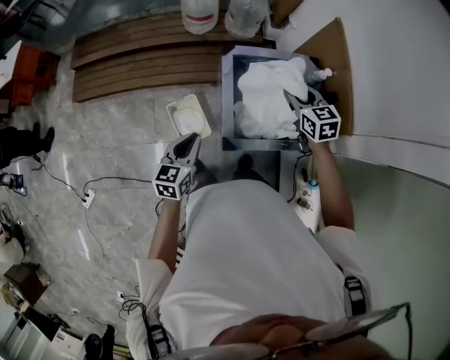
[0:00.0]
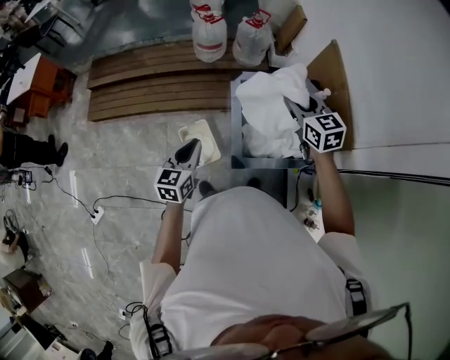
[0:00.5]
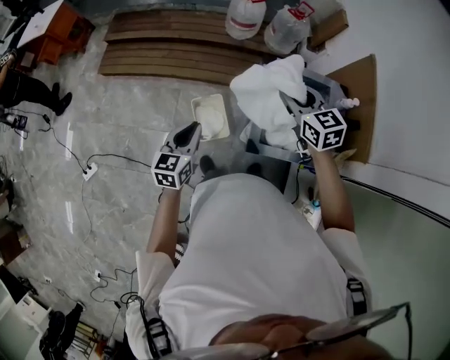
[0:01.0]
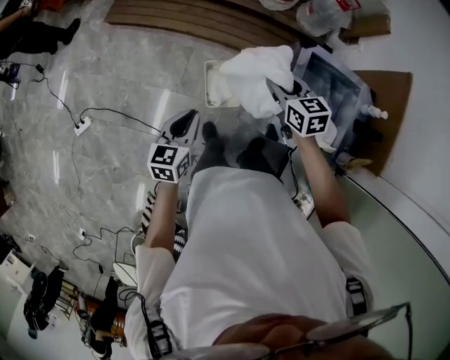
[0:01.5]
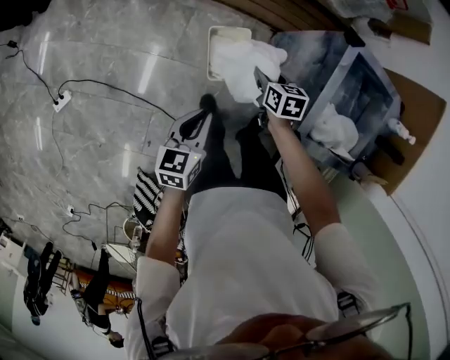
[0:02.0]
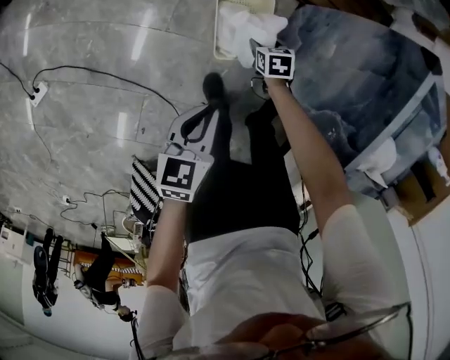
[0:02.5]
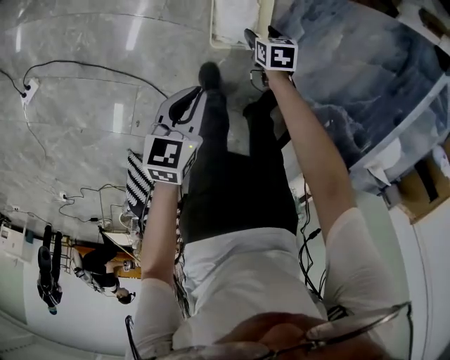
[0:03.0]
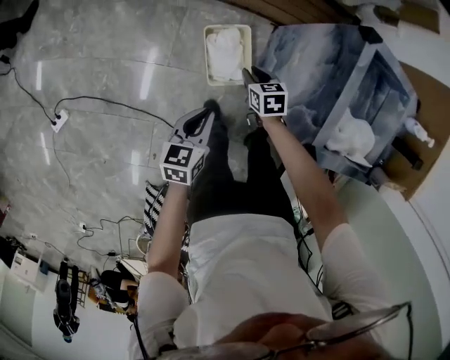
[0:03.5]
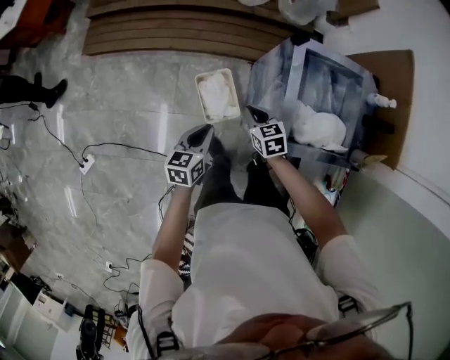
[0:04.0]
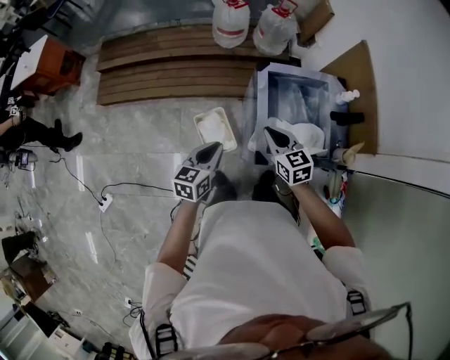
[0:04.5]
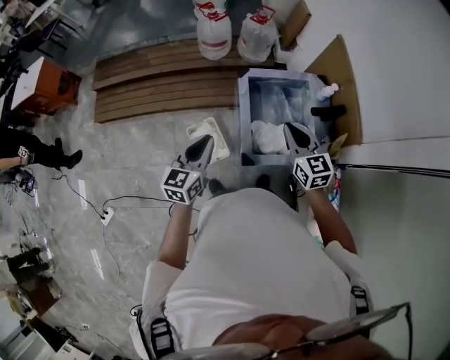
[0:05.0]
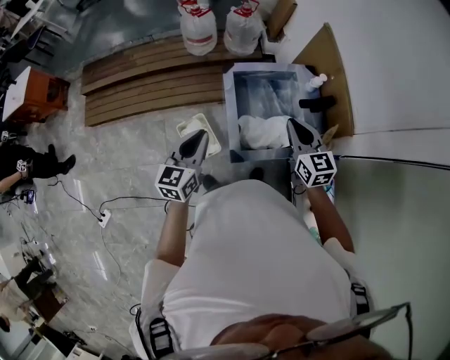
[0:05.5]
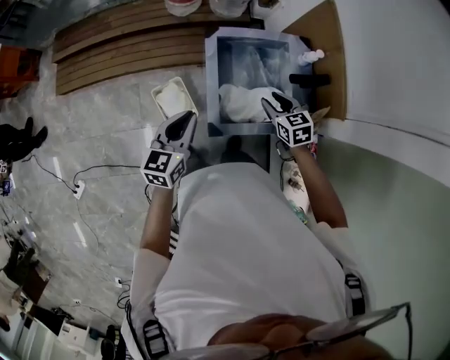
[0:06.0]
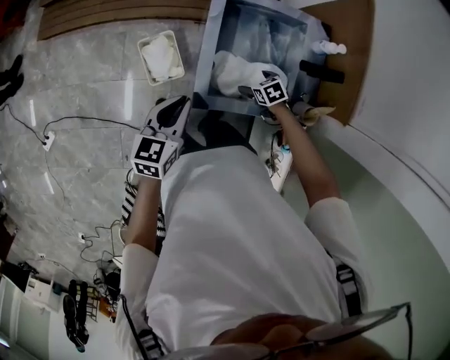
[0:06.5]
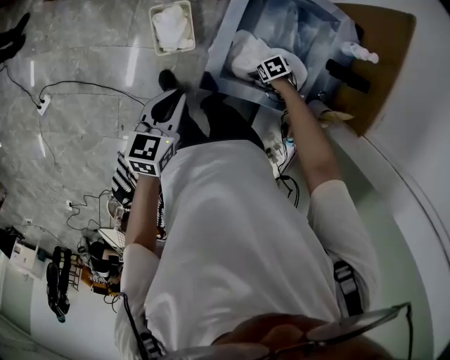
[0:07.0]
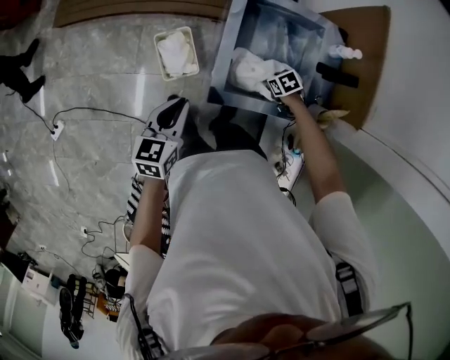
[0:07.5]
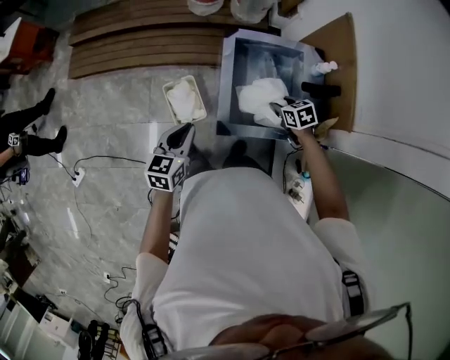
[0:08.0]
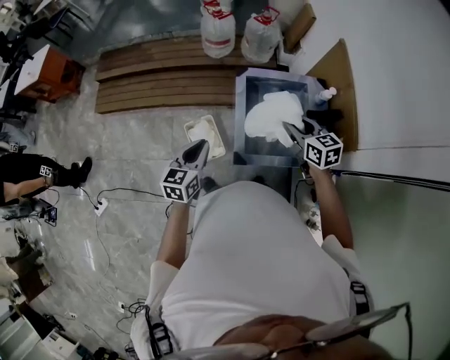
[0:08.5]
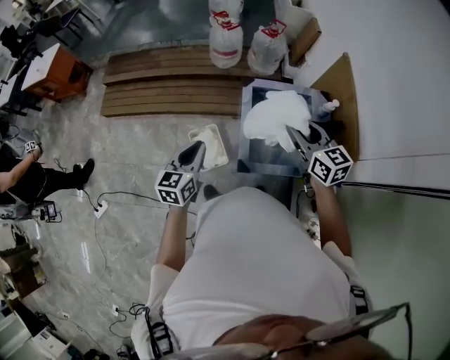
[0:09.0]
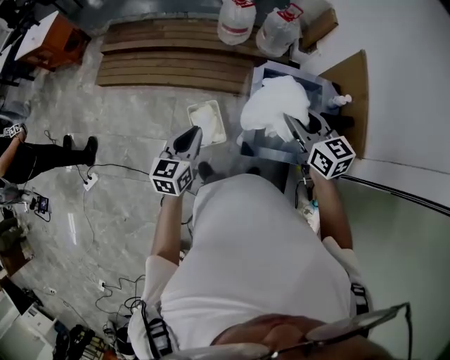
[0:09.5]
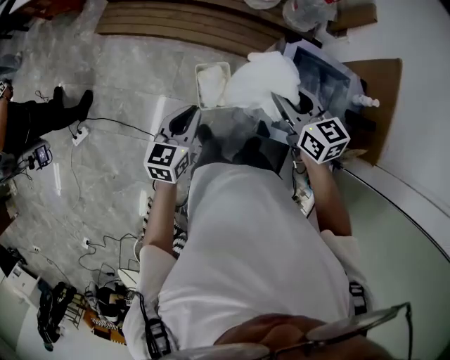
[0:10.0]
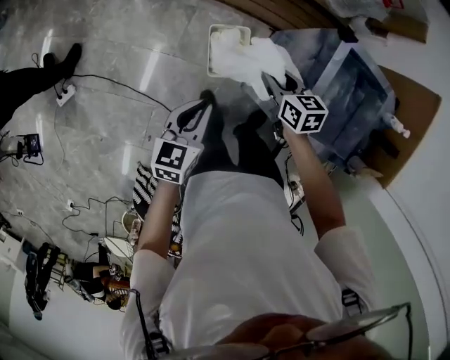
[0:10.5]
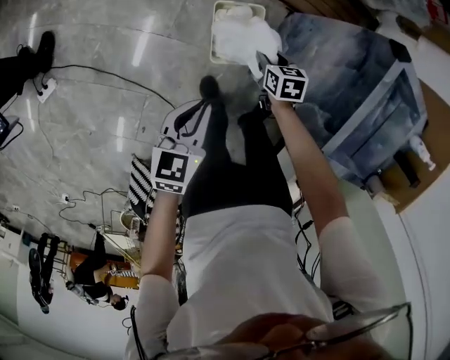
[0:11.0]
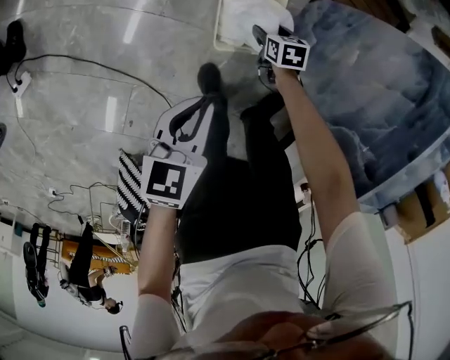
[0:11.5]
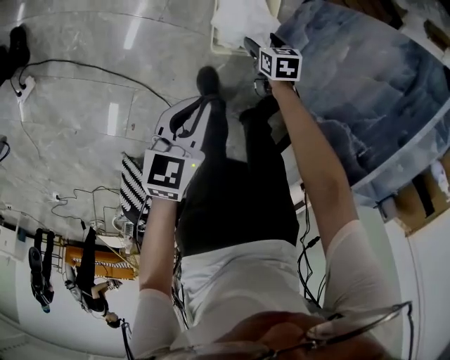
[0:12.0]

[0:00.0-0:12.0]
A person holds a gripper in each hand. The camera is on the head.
0:00.0 to 0:02.0: The right gripper travels to the left and downward by some 50 cm, and rotates approximately 30 degrees, while the left gripper goes roughly 35 cm to the left and downward, and swivels approximately 30 degrees.
0:02.0 to 0:04.0: The right gripper is displaced to the right and backward by about 5 cm, and moves approximately 35 cm downward and comes back, while the left gripper is displaced to the right by roughly 5 cm, and goes downward and returns, approximately 25 cm each way.
0:04.0 to 0:06.0: Both grippers travel together to the right and upward, some 35 cm. The left gripper swivels some 20 degrees.
0:06.0 to 0:08.0: The right gripper travels downward and back again, approximately 35 cm each way, and opens and closes again.
0:08.0 to 0:10.0: The left gripper travels to the left by approximately 15 cm; the right gripper travels to the left and upward by roughly 35 cm, and tilts its fingers approximately 30 degrees upward.
0:10.0 to 0:12.0: The right gripper is displaced downward by roughly 80 cm, tips its fingers downward by about 40 degrees, and opens. Meanwhile the left gripper goes some 50 cm downward, and changes its angle by about 20 degrees.

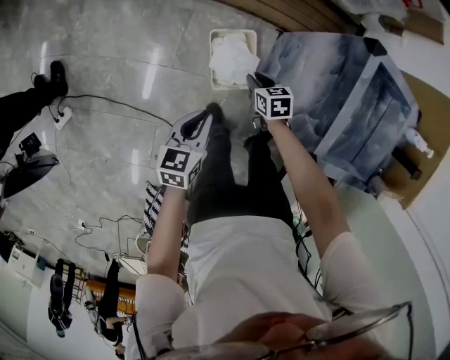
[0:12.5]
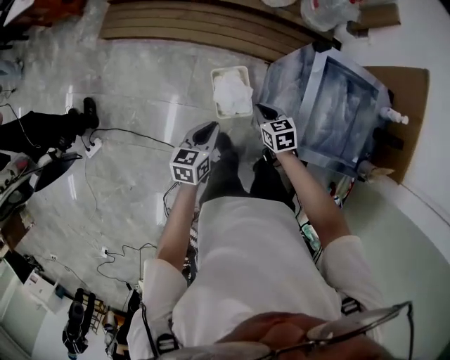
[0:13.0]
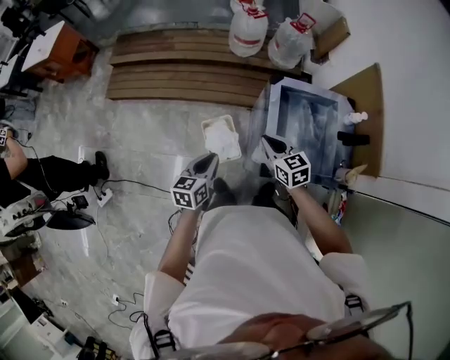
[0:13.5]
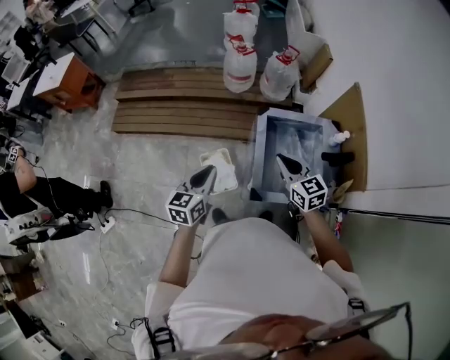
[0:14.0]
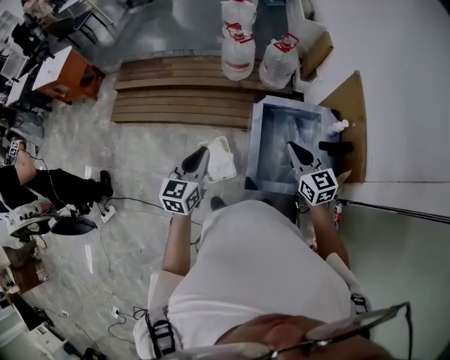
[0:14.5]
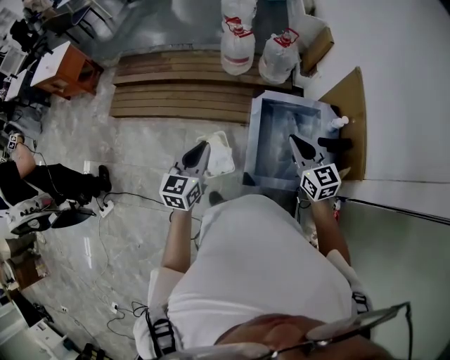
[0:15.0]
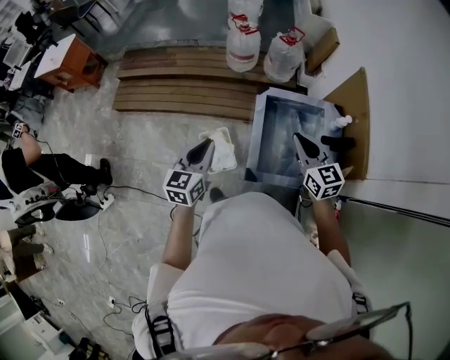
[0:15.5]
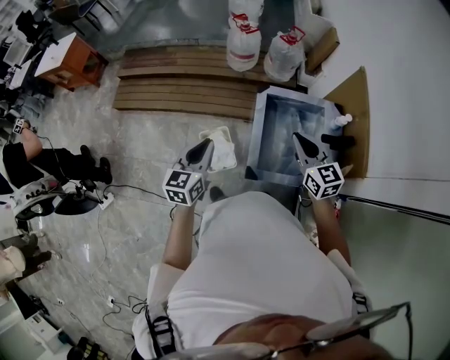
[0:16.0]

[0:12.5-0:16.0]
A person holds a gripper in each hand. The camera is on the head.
0:12.5 to 0:14.5: The grippers both shift upward and to the right by approximately 60 cm. The left gripper rotates approximately 30 degrees. Meanwhile the right gripper points its fingers approximately 40 degrees further upward.
0:14.5 to 0:16.0: There are only small adjustments of the grippers.

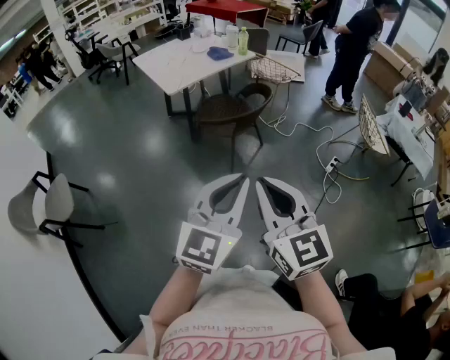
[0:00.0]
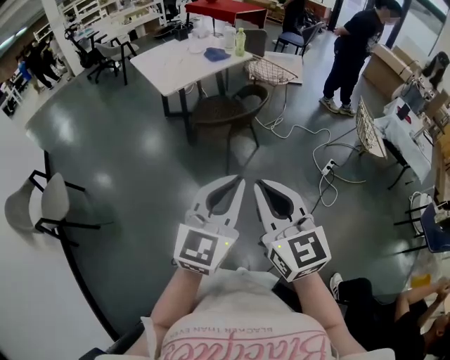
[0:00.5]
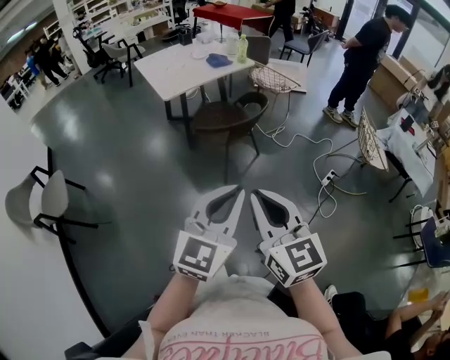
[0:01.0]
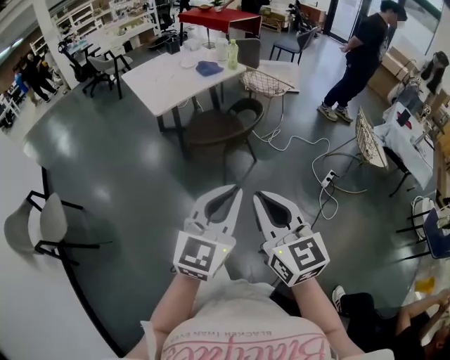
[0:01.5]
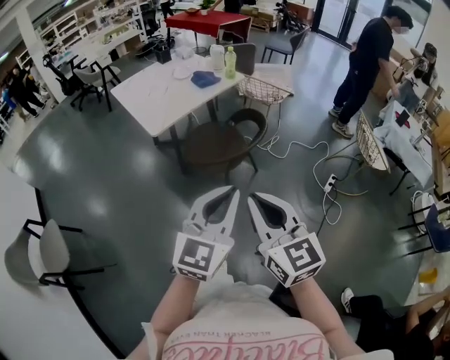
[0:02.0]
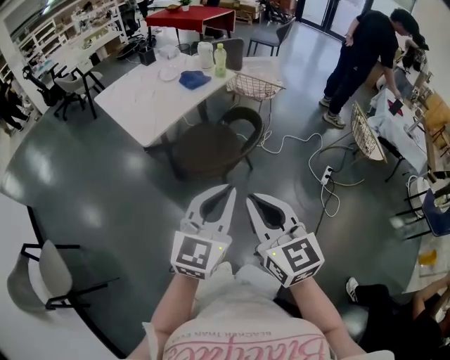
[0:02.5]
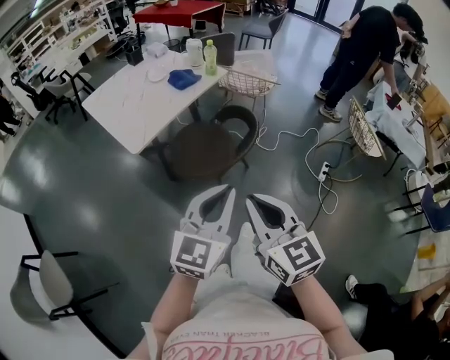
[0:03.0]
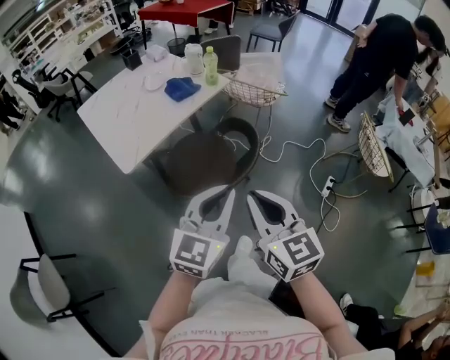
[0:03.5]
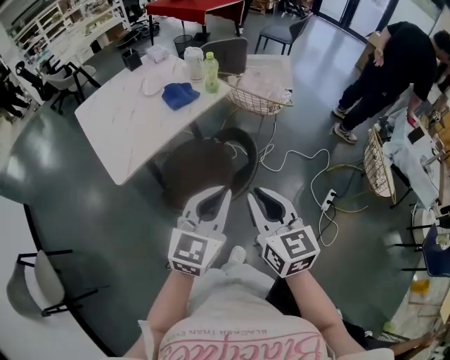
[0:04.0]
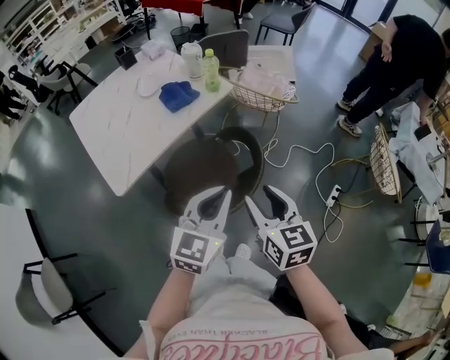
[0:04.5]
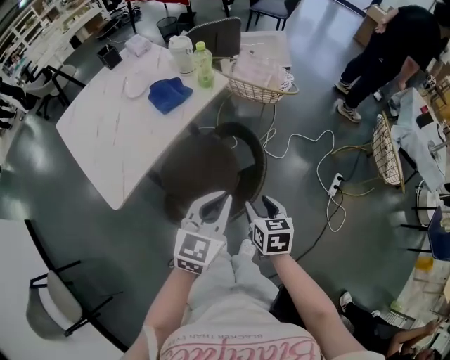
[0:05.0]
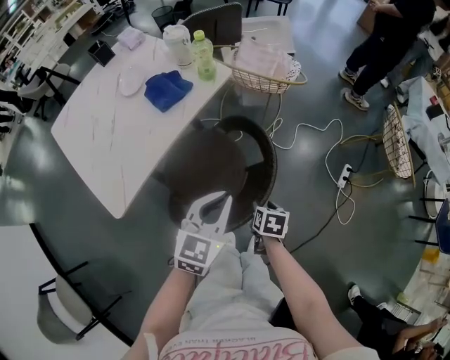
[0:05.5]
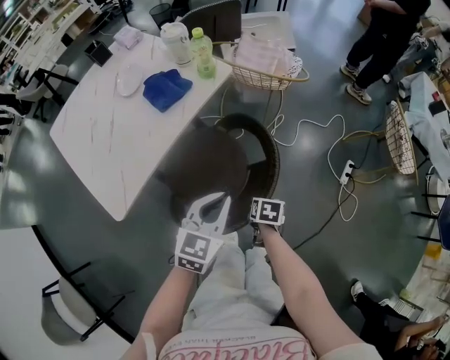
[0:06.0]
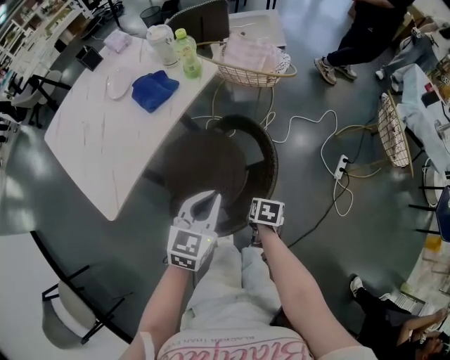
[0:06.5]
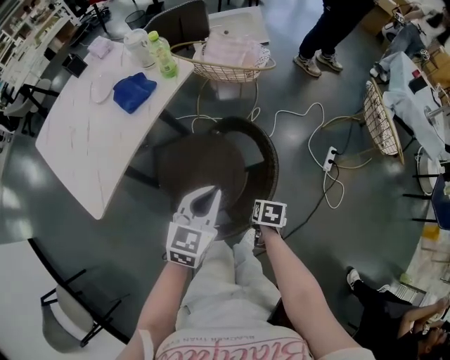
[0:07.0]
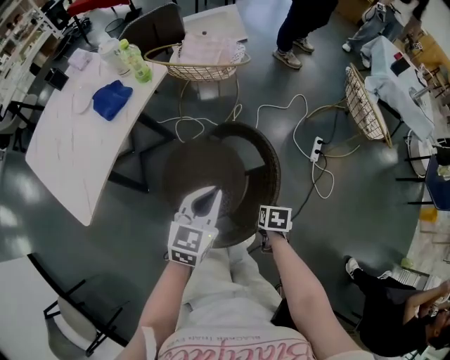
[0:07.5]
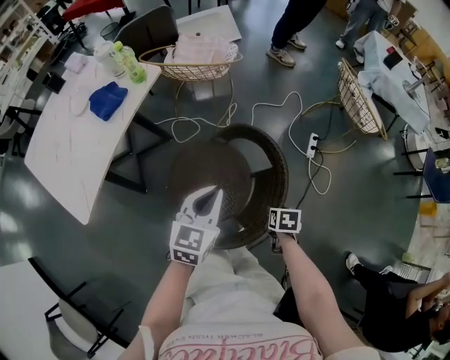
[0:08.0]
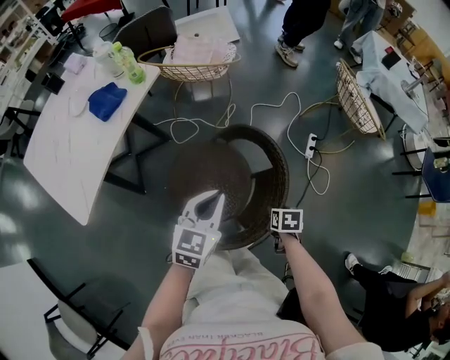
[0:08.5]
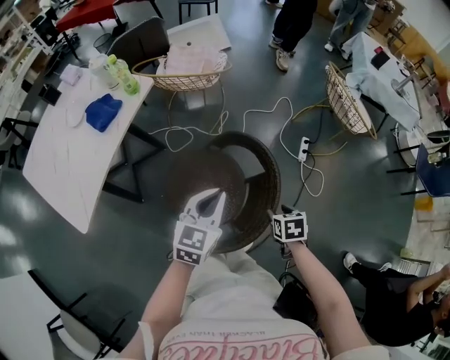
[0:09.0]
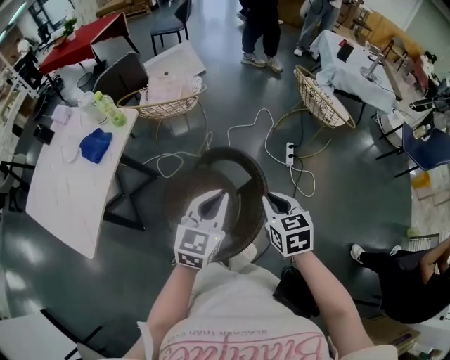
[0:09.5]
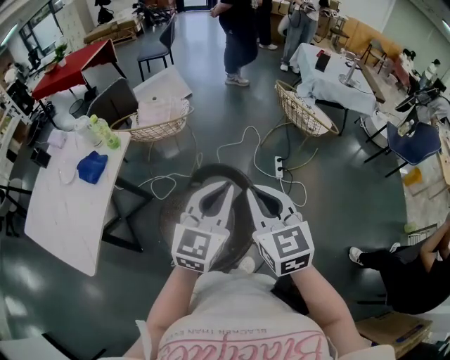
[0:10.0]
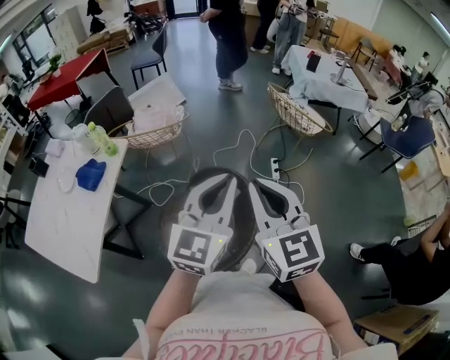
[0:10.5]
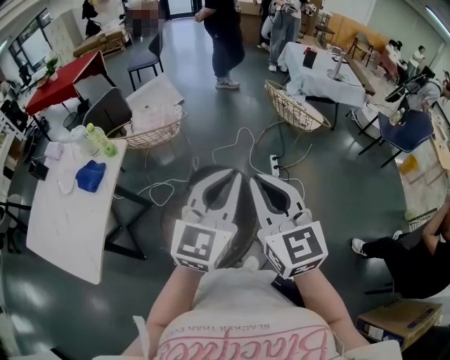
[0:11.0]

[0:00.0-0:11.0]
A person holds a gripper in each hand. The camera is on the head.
0:00.0 to 0:02.0: Both grippers move forward, roughly 20 cm.
0:02.0 to 0:03.5: Both grippers travel together forward, roughly 25 cm.
0:03.5 to 0:05.5: The left gripper moves forward and downward, about 30 cm. The right gripper shifts approximately 40 cm downward and forward, points its fingers roughly 50 degrees further downward, and opens.
0:05.5 to 0:07.5: The grippers both shift to the right by approximately 15 cm.
0:07.5 to 0:09.0: The right gripper is displaced to the right and upward by approximately 10 cm. The left gripper goes about 5 cm to the right.
0:09.0 to 0:11.0: The left gripper travels upward and to the right by some 25 cm, and rotates roughly 30 degrees. The right gripper is displaced upward by some 40 cm, points its fingers about 60 degrees further upward, and closes its fingers.
